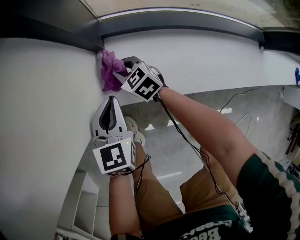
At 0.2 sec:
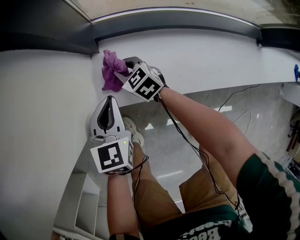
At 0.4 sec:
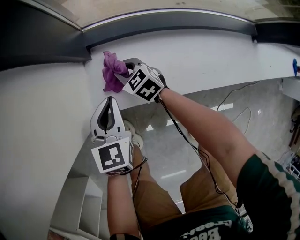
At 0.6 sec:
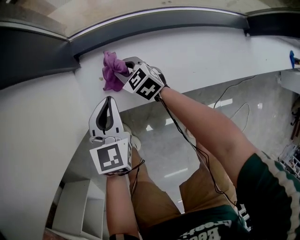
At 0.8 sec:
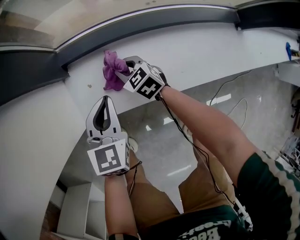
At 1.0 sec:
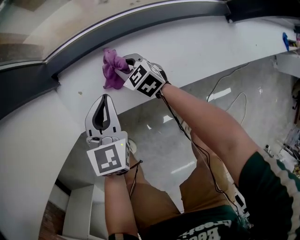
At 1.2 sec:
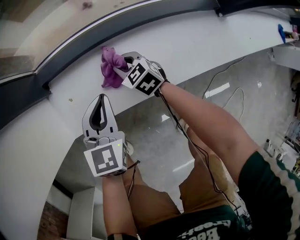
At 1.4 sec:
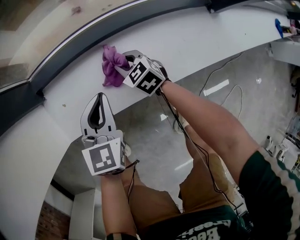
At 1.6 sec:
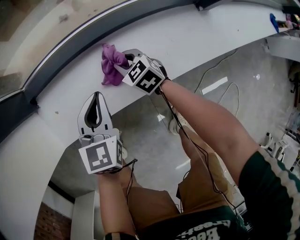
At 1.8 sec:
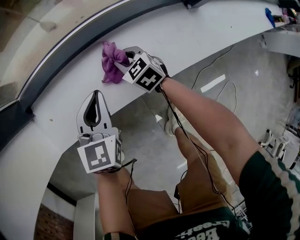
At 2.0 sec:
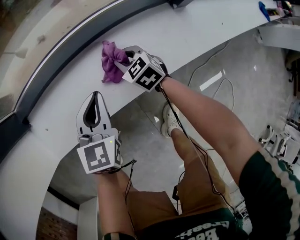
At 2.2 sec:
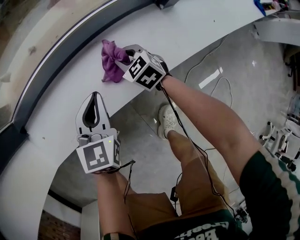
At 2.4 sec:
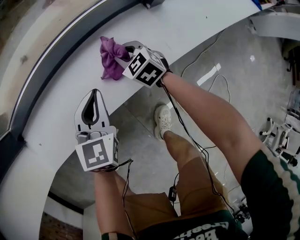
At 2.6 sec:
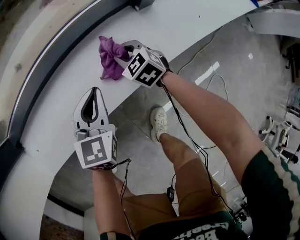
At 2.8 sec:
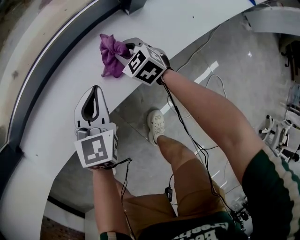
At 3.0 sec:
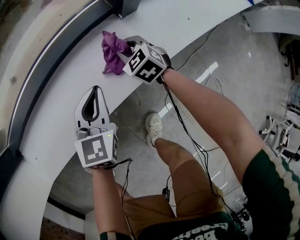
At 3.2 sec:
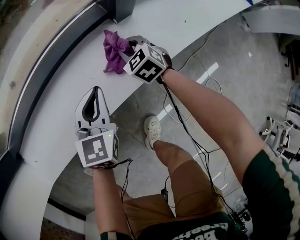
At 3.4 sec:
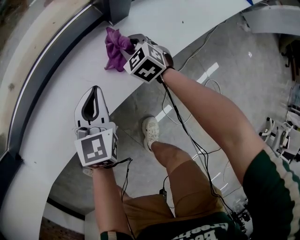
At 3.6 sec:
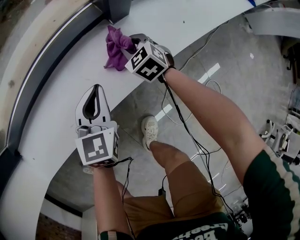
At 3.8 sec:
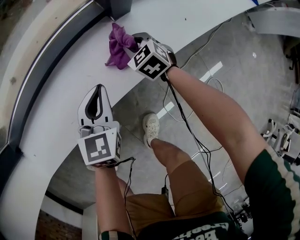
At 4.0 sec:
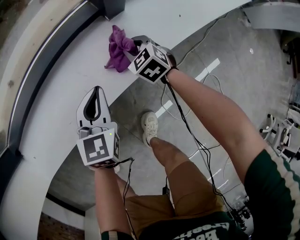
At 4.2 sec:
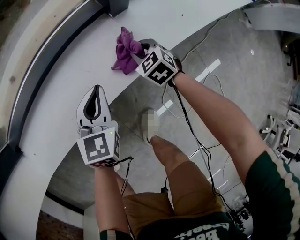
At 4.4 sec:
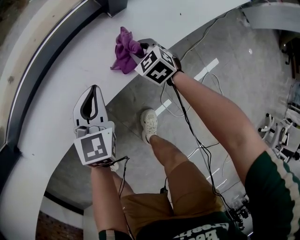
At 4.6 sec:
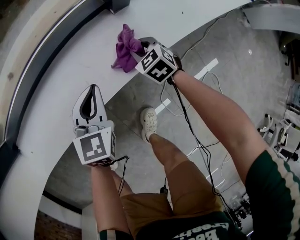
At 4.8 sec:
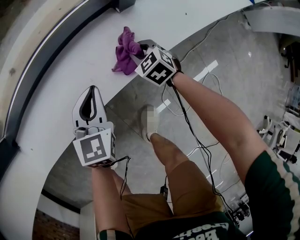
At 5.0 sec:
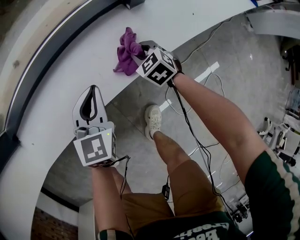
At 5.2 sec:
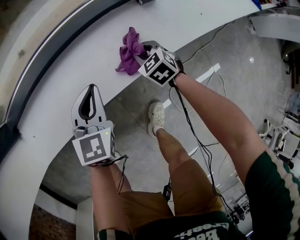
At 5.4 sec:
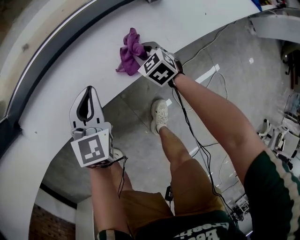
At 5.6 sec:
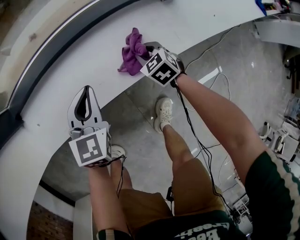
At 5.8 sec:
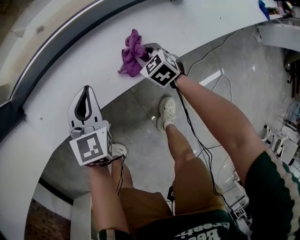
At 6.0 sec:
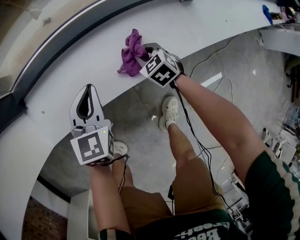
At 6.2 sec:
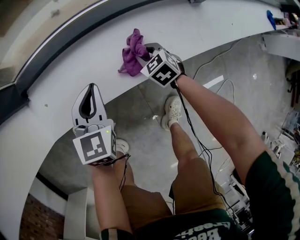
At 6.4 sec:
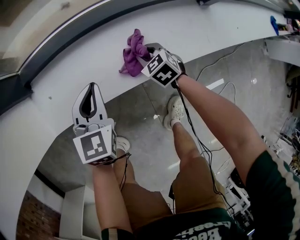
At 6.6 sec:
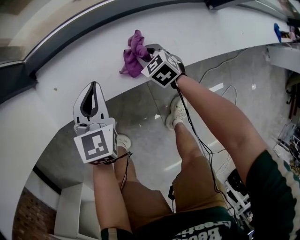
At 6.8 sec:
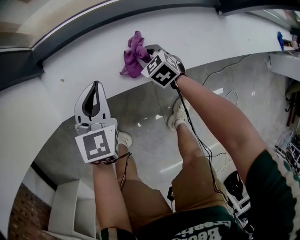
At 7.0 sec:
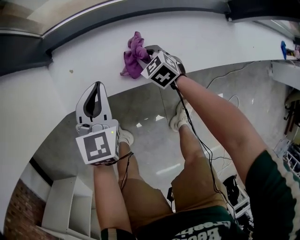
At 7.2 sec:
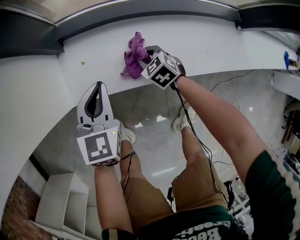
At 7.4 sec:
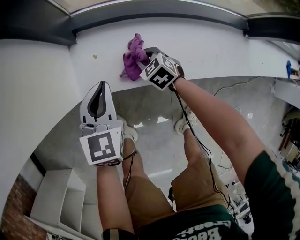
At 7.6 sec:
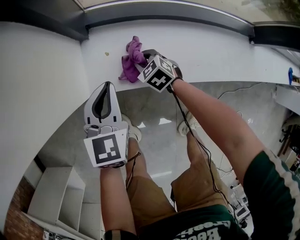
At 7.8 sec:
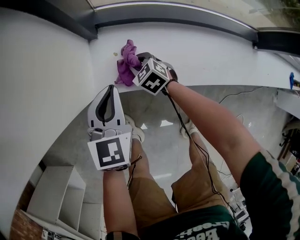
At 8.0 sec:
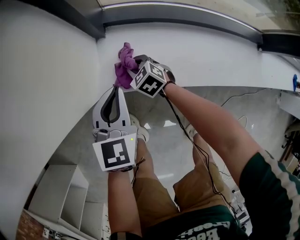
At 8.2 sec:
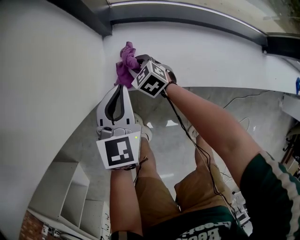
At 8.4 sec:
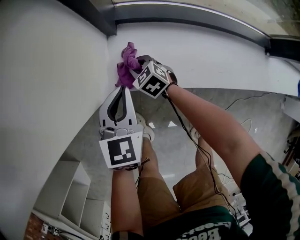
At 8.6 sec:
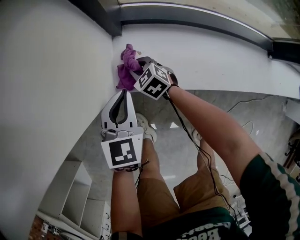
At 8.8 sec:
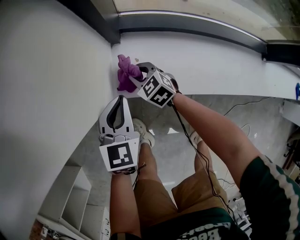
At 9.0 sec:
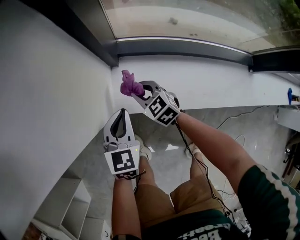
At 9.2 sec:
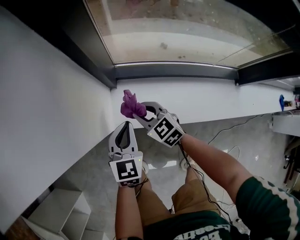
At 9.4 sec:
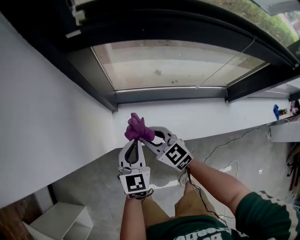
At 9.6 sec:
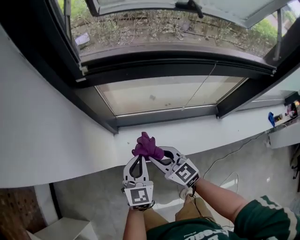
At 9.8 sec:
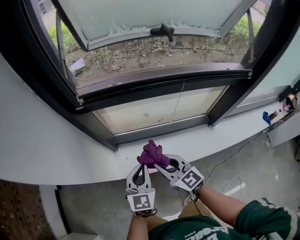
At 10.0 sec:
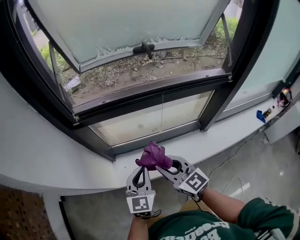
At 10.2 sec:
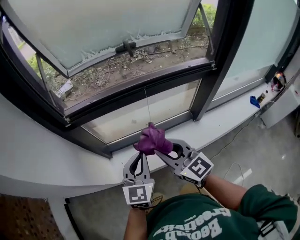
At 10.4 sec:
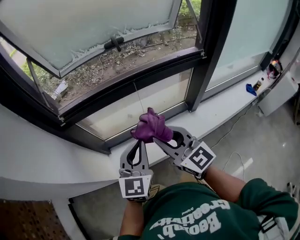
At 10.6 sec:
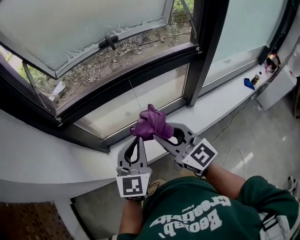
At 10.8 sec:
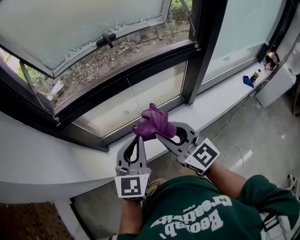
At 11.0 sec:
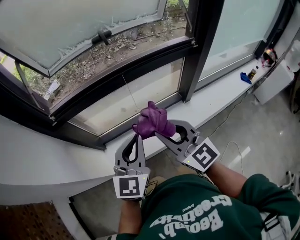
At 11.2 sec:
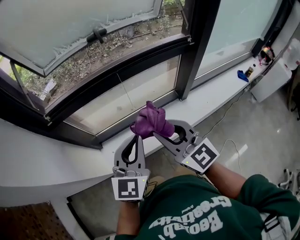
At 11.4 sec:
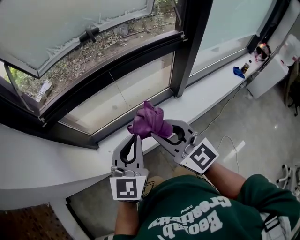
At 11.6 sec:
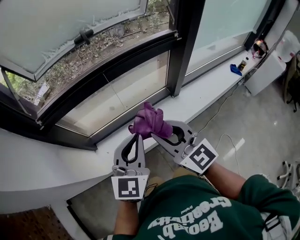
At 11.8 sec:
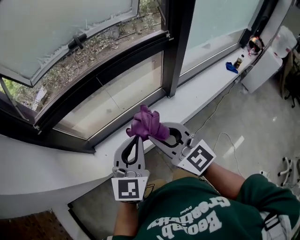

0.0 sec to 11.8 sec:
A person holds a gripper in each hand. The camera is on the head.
0.0 sec to 1.4 sec: The two grippers go approximately 30 cm to the right.
1.4 sec to 3.0 sec: Both grippers move to the right, approximately 40 cm.
3.0 sec to 4.4 sec: The right gripper heads to the right, covering some 5 cm.
4.4 sec to 6.0 sec: The grippers both shift to the left by about 25 cm.
6.0 sec to 7.4 sec: The two grippers go about 30 cm to the left. The right gripper rotates approximately 20 degrees.
7.4 sec to 8.8 sec: The right gripper moves to the left and forward, some 20 cm. The left gripper travels to the left by roughly 10 cm.
8.8 sec to 10.4 sec: Both grippers move upward, about 60 cm. The left gripper rotates about 40 degrees, while the right gripper tilts its fingers some 50 degrees upward.
10.4 sec to 11.8 sec: The two grippers go approximately 10 cm to the right and backward.

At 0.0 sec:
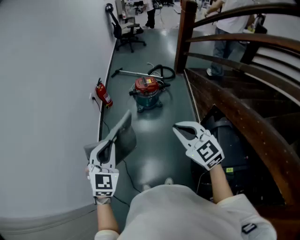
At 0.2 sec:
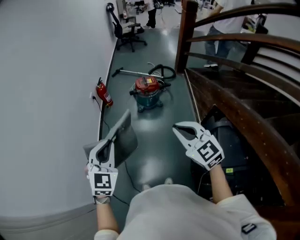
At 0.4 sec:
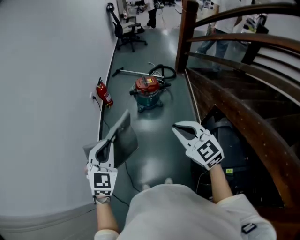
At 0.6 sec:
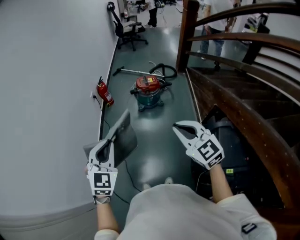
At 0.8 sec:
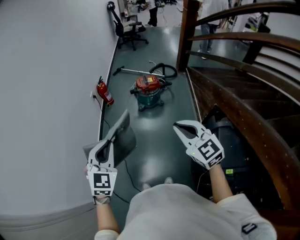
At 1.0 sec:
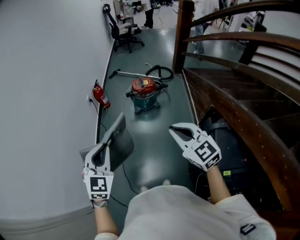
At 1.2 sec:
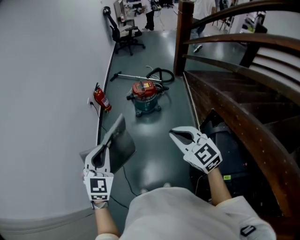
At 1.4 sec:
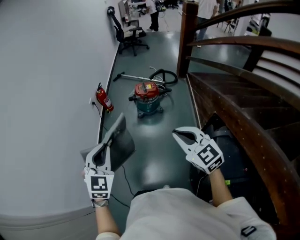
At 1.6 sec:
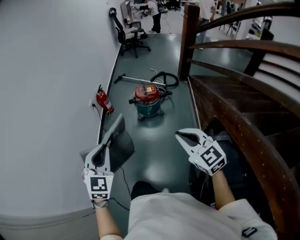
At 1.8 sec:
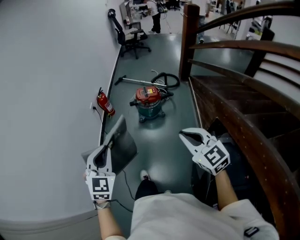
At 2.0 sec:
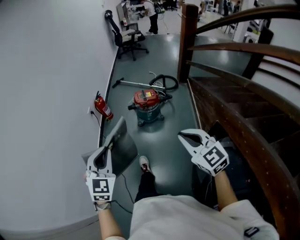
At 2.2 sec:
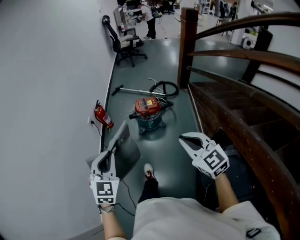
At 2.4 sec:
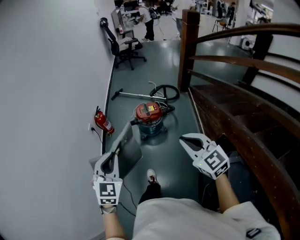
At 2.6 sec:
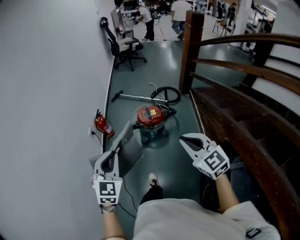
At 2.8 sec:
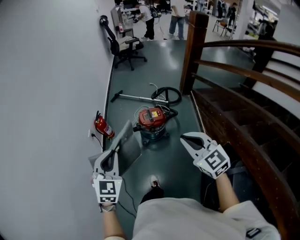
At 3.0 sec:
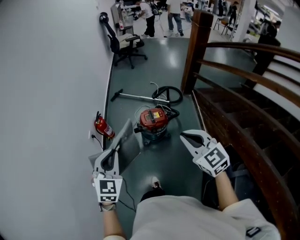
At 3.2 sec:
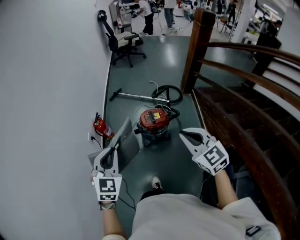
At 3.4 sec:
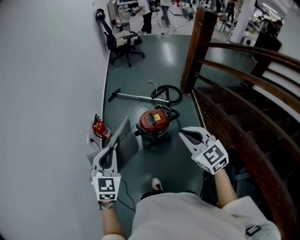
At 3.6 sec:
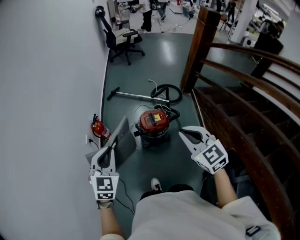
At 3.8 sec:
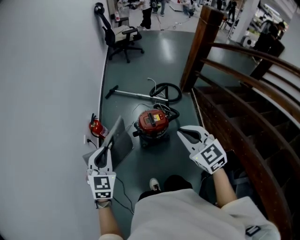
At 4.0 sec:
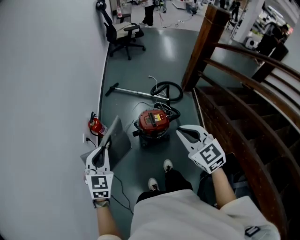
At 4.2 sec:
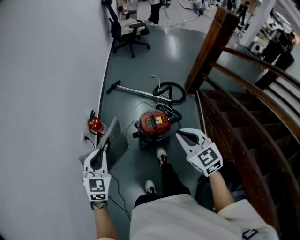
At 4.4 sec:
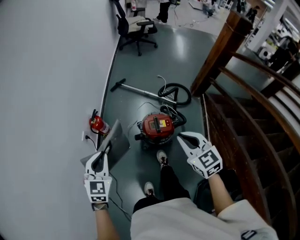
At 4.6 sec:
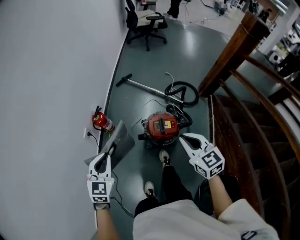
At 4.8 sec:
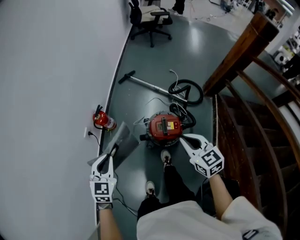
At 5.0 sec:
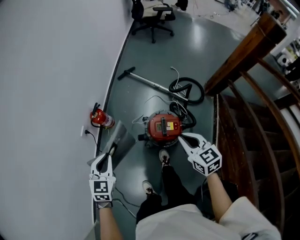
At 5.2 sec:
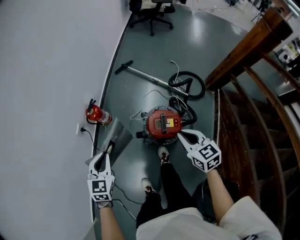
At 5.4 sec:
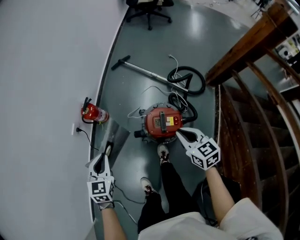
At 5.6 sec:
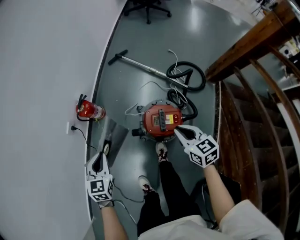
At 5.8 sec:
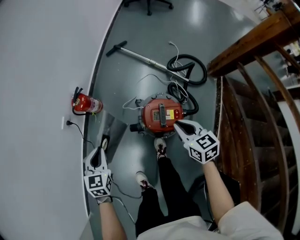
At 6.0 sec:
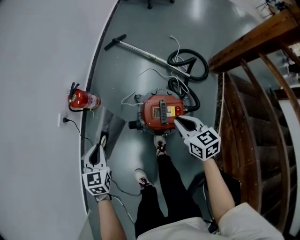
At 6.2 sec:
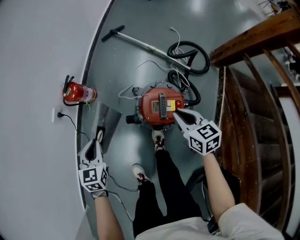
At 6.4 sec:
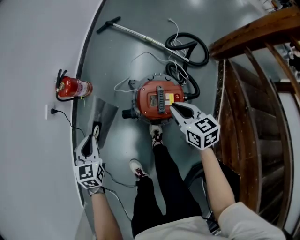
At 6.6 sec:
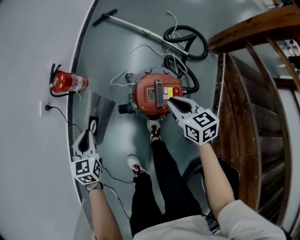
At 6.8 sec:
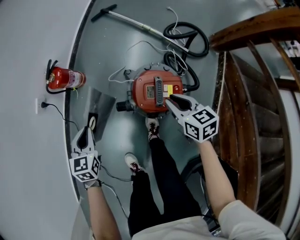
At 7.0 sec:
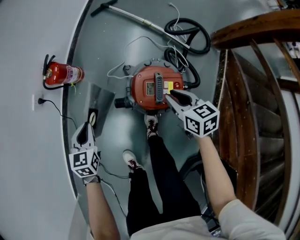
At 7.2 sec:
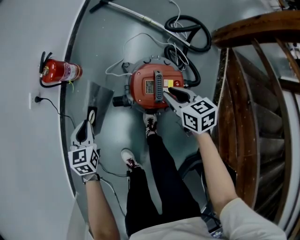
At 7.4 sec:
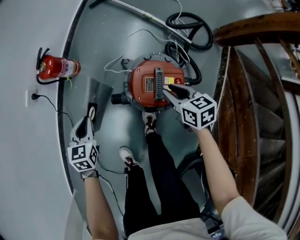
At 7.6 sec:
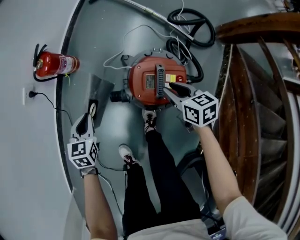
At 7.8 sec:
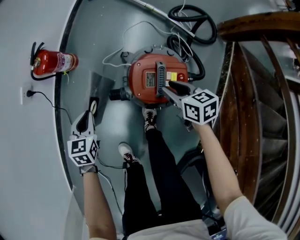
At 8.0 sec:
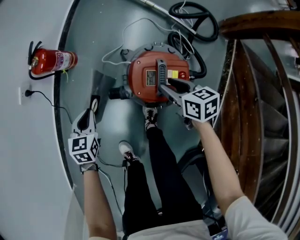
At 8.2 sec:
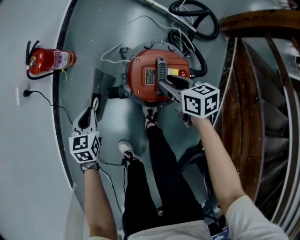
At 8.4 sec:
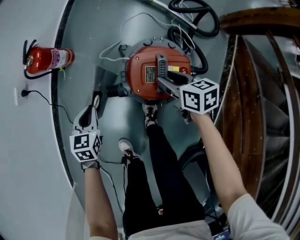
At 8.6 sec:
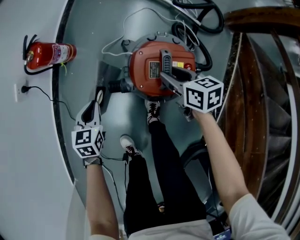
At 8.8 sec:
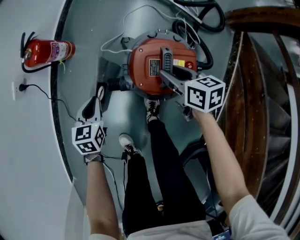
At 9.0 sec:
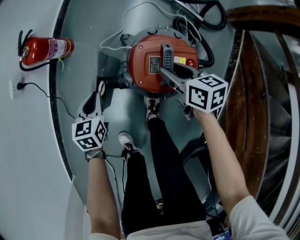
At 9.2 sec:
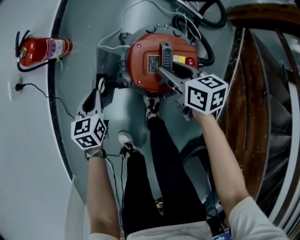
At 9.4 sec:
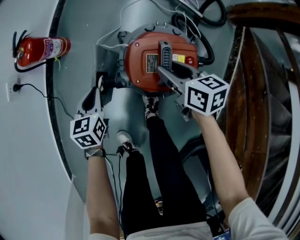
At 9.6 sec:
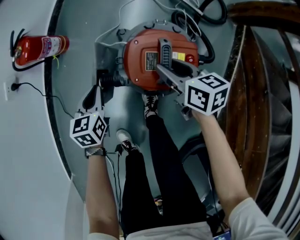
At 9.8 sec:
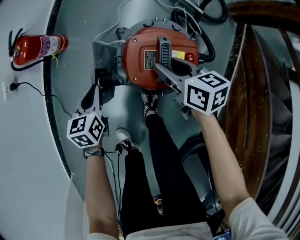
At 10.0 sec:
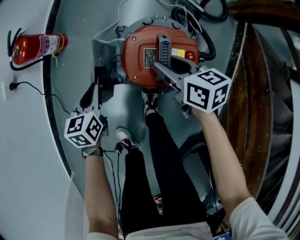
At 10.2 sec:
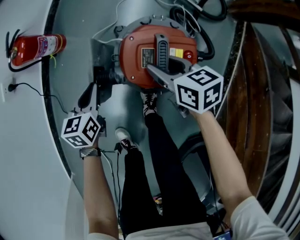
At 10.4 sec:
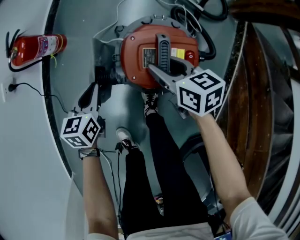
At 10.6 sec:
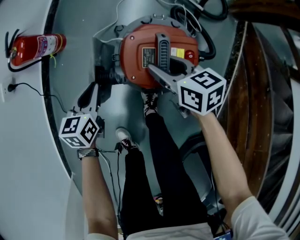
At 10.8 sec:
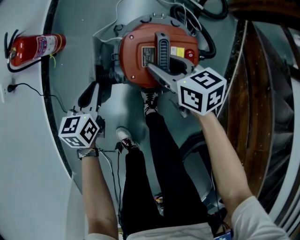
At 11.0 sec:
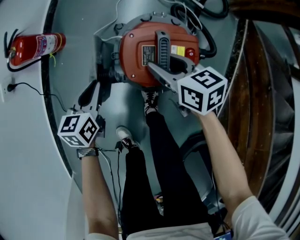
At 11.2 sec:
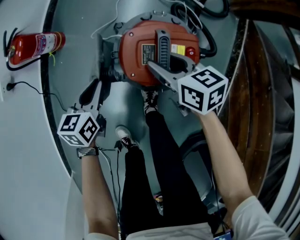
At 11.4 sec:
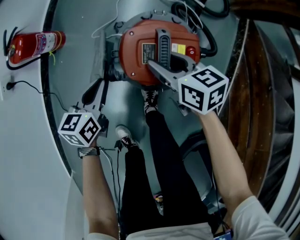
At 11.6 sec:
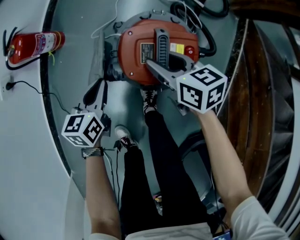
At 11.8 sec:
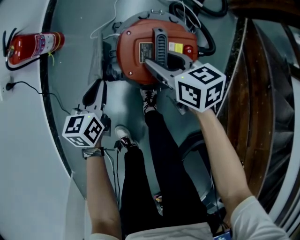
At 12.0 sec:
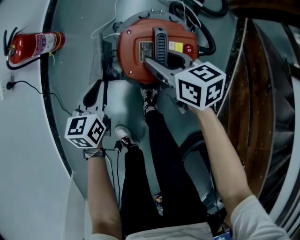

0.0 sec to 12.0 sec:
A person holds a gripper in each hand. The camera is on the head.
0.0 sec to 1.6 sec: The right gripper is displaced to the right by some 10 cm, while the left gripper travels to the right by some 5 cm.
1.6 sec to 3.0 sec: Both grippers travel together forward, approximately 35 cm.
3.0 sec to 4.4 sec: The two grippers go roughly 25 cm forward and downward.
4.4 sec to 6.0 sec: The left gripper goes about 30 cm downward, and rotates some 30 degrees. The right gripper moves downward and forward, roughly 35 cm, and turns by some 20 degrees.
6.0 sec to 7.6 sec: Both grippers move downward, some 20 cm. The right gripper opens its fingers.
7.6 sec to 9.0 sec: The left gripper heads downward and to the right, covering roughly 10 cm; the right gripper moves about 5 cm.
9.0 sec to 10.4 sec: There are only small adjustments of the grippers.
10.4 sec to 12.0 sec: The grippers stay close to where they were, moving slightly.
